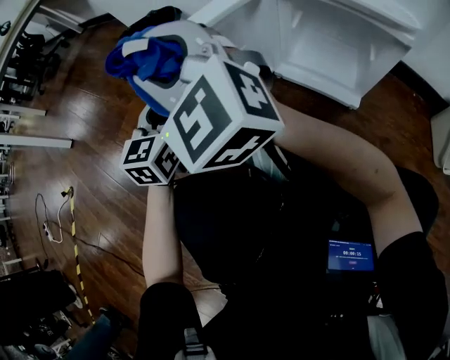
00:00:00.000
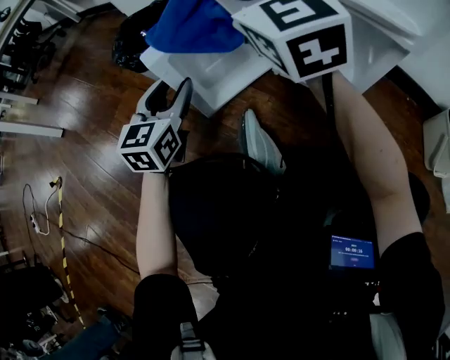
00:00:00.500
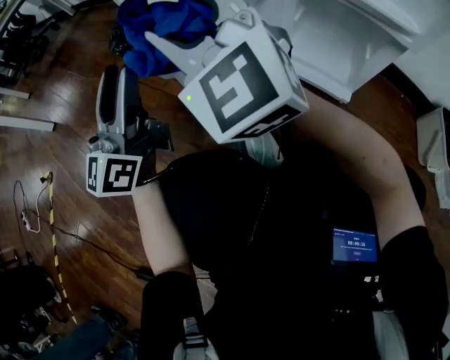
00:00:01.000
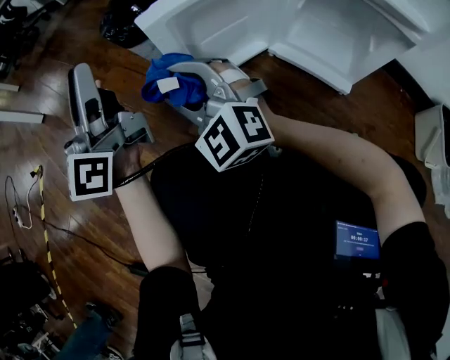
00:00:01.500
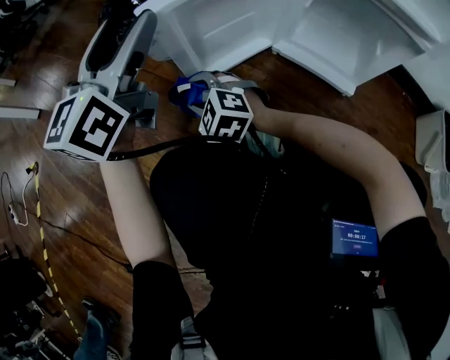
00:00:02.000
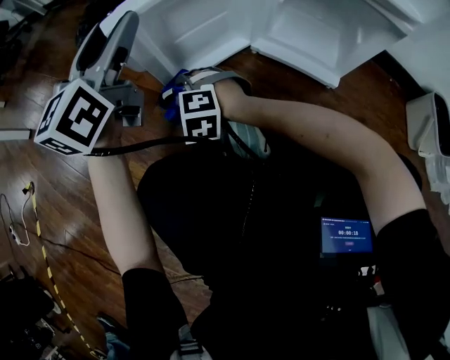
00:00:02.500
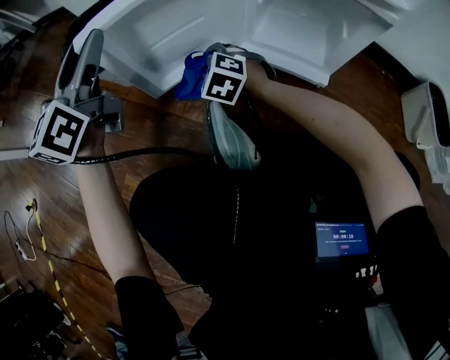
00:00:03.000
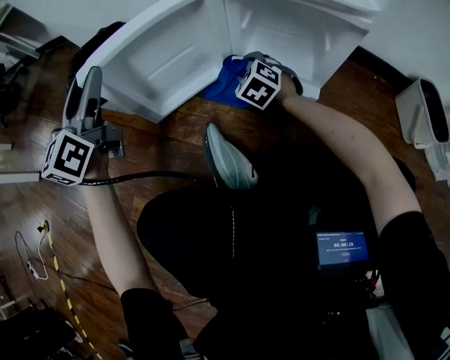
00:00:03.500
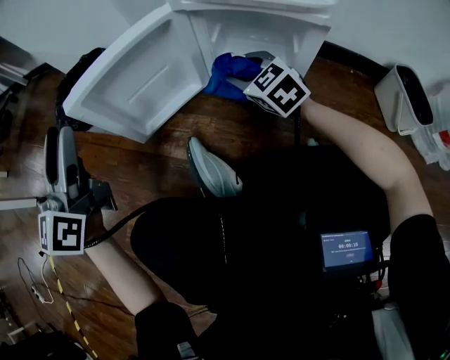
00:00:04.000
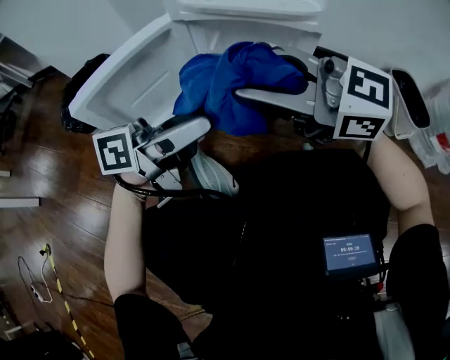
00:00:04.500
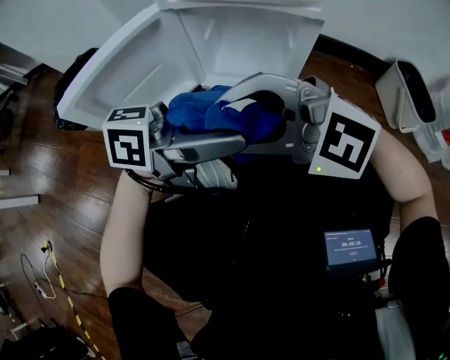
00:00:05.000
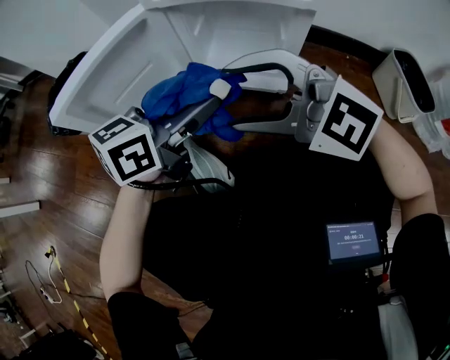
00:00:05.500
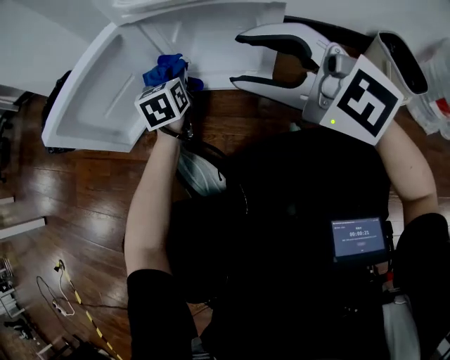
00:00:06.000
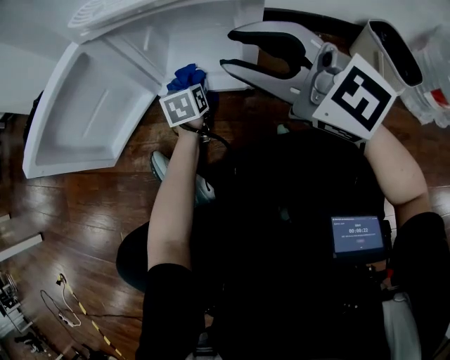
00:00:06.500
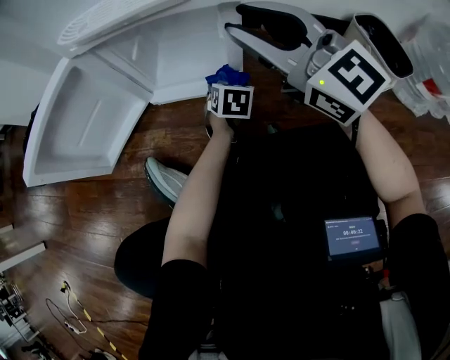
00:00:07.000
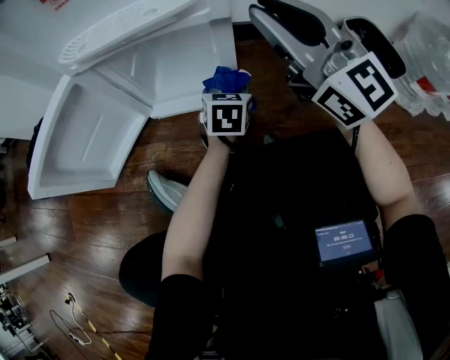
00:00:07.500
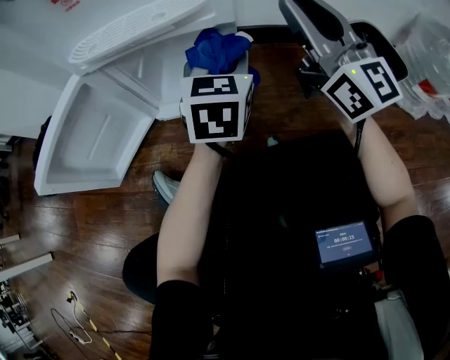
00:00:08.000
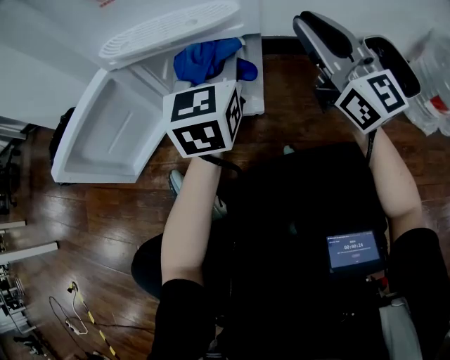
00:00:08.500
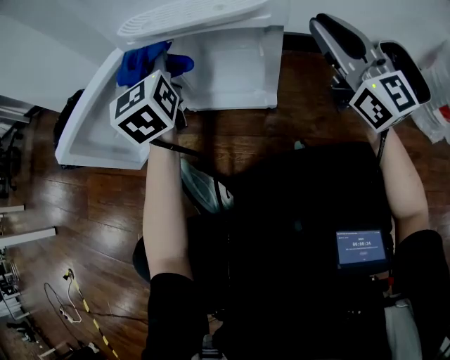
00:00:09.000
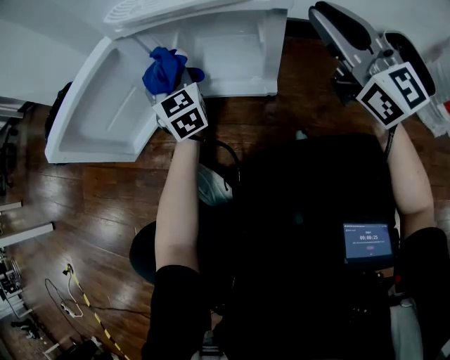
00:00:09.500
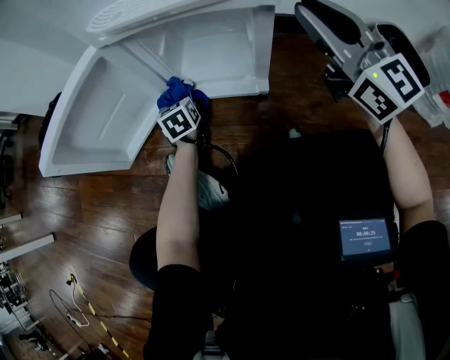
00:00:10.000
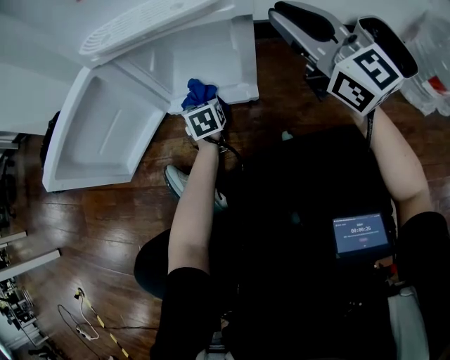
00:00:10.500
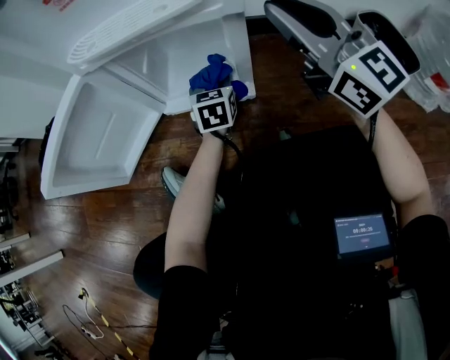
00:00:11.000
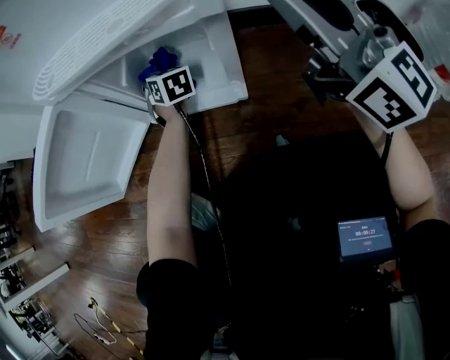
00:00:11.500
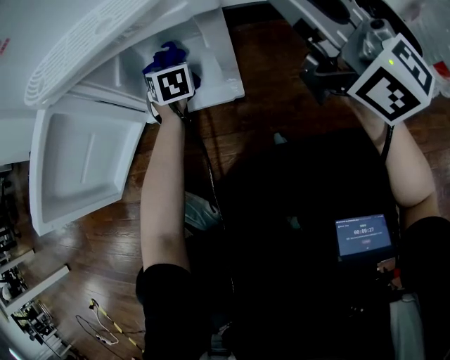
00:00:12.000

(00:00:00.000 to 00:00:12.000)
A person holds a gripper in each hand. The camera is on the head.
00:00:00.000 - 00:00:02.000: The right gripper goes about 30 cm downward, and tilts its fingers roughly 40 degrees downward. Meanwhile the left gripper moves upward, roughly 10 cm, and turns by roughly 20 degrees.
00:00:02.000 - 00:00:04.000: The left gripper goes forward and returns, some 5 cm each way. The right gripper goes approximately 30 cm to the right, and turns by some 40 degrees.
00:00:04.000 - 00:00:06.000: The right gripper is displaced upward by about 15 cm, and turns by roughly 30 degrees. The left gripper moves some 40 cm, and tips its fingers downward by roughly 40 degrees.
00:00:06.000 - 00:00:08.000: The right gripper shifts by approximately 20 cm, changes its angle by roughly 50 degrees, and closes, while the left gripper moves about 25 cm, and turns by some 30 degrees.
00:00:08.000 - 00:00:10.000: The right gripper ends up roughly 5 cm from where it was; the left gripper shifts some 35 cm to the left and downward, and turns by some 40 degrees.
00:00:10.000 - 00:00:12.000: The left gripper moves to the right and forward, about 15 cm, and swivels some 30 degrees.

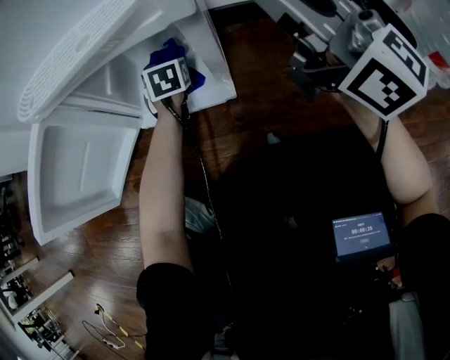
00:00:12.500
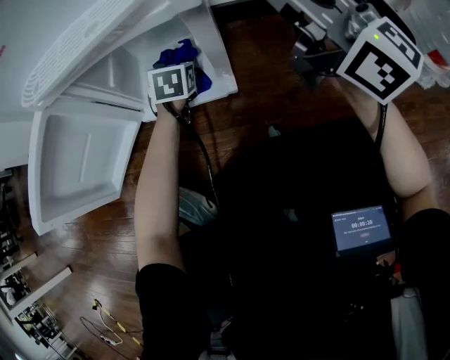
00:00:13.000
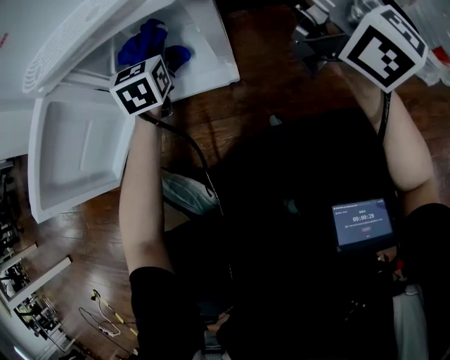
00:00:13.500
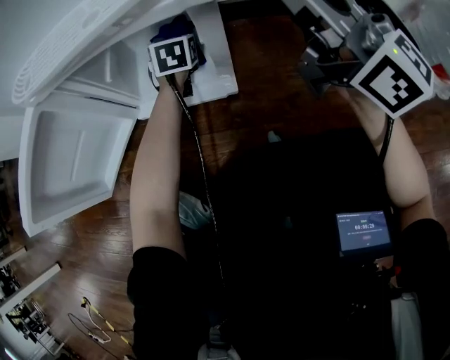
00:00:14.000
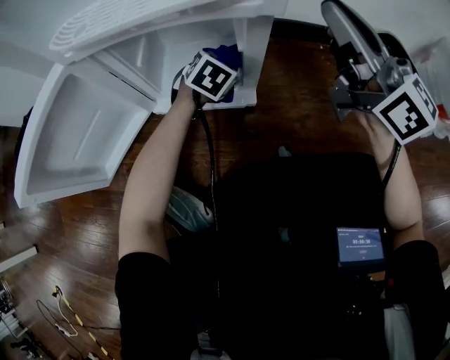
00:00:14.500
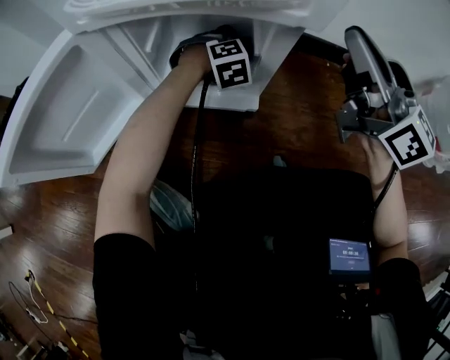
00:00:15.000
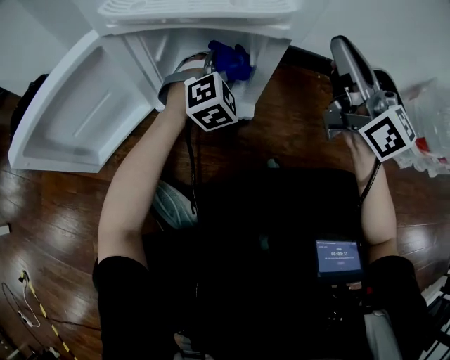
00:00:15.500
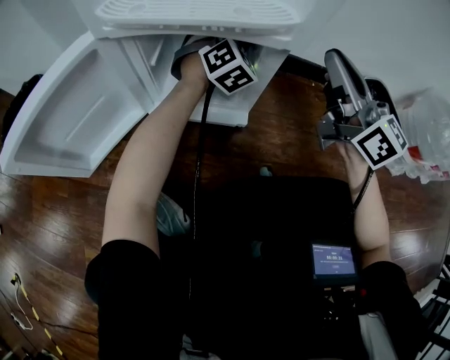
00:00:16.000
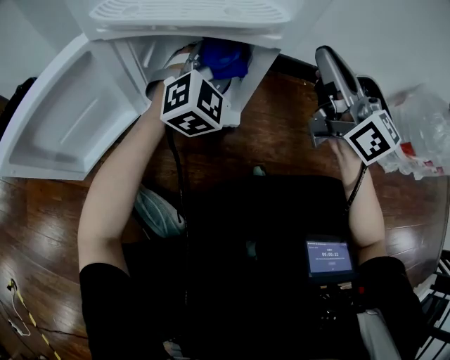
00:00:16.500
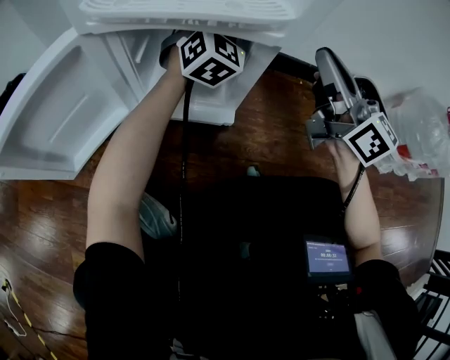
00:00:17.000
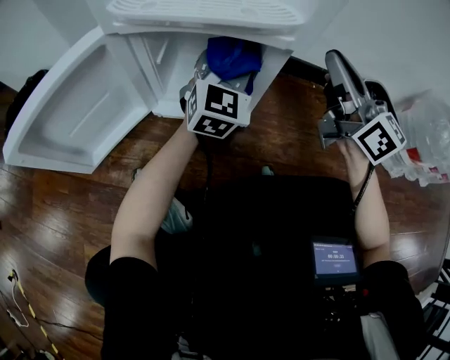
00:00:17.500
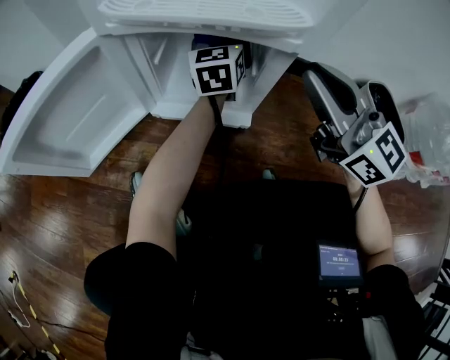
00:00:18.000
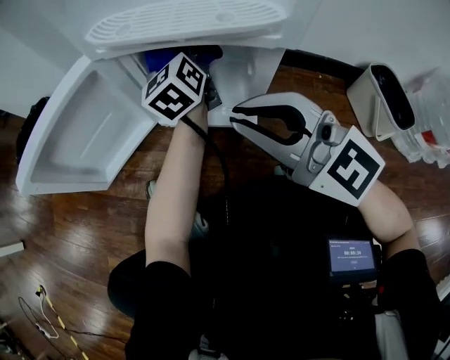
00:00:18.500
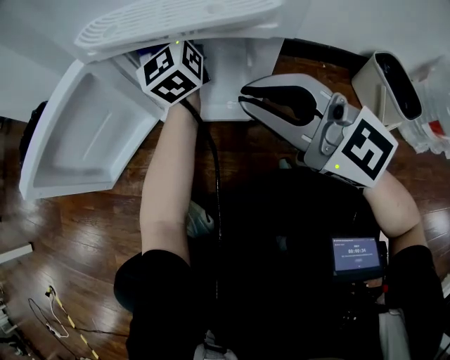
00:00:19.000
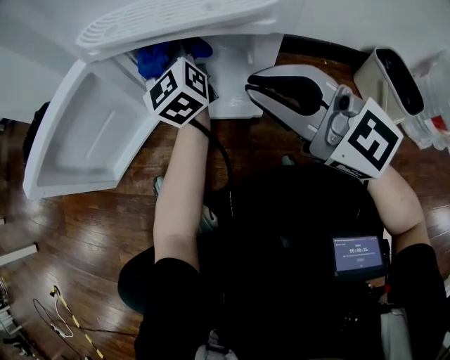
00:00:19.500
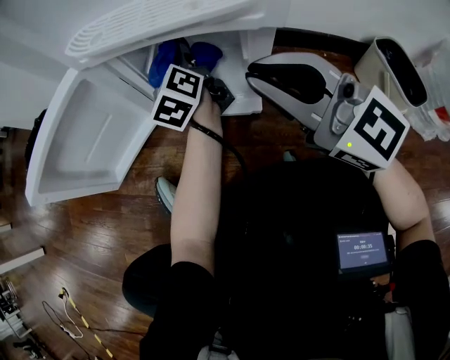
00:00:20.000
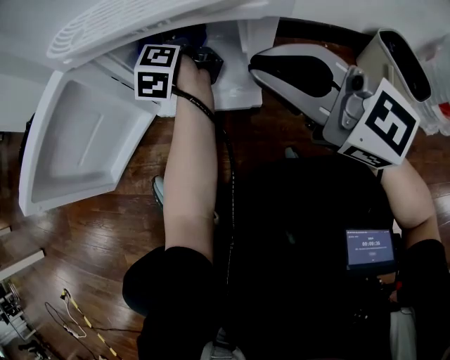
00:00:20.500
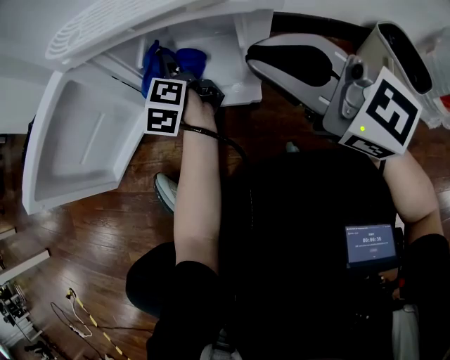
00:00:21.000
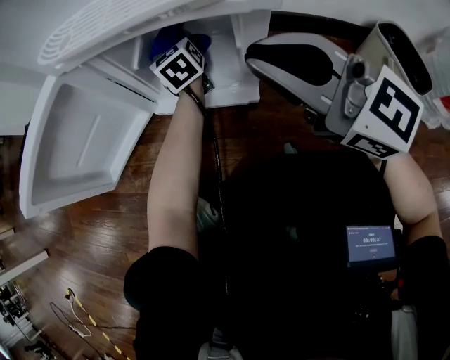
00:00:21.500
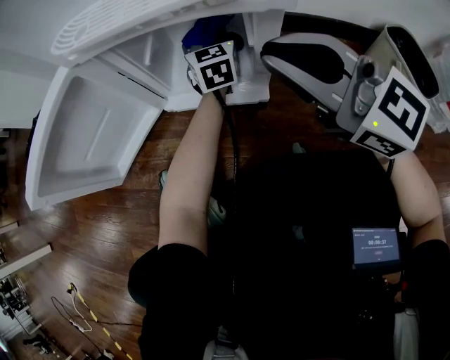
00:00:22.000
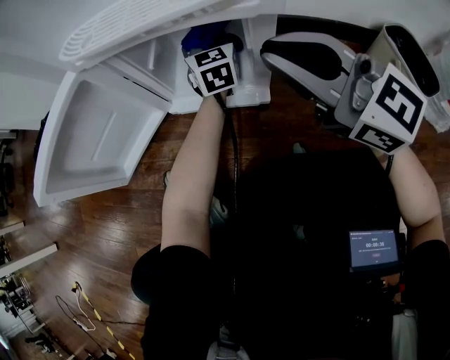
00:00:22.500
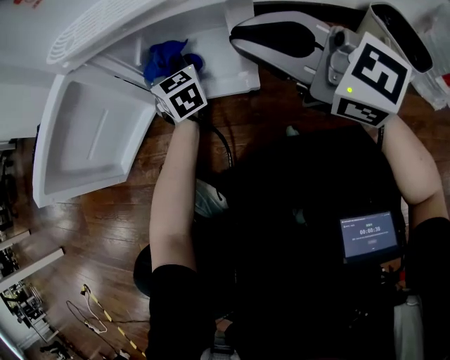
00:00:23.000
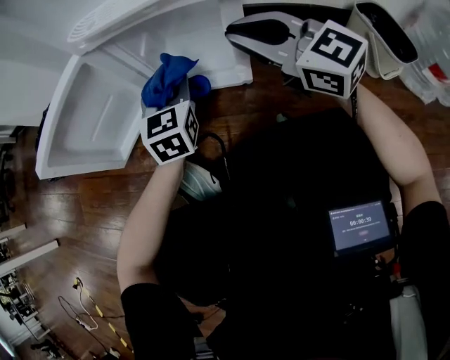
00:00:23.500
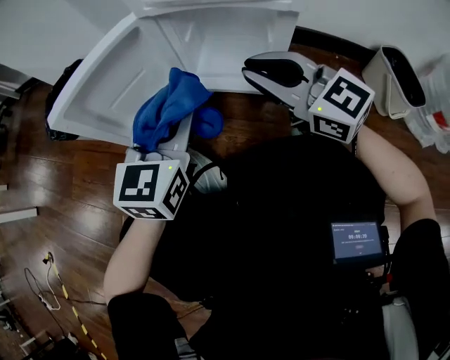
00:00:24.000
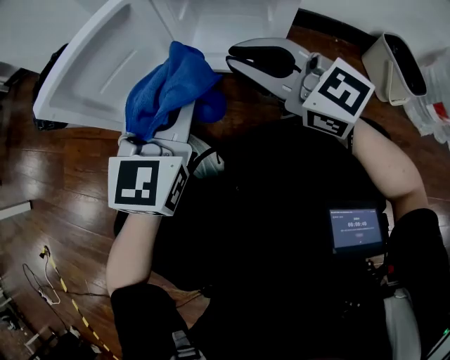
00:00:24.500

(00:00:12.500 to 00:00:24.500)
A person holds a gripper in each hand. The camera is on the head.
00:00:12.500 - 00:00:14.500: The left gripper moves to the right and backward, about 10 cm, goes upward and returns, roughly 10 cm each way, and turns by approximately 30 degrees.
00:00:14.500 - 00:00:16.500: The left gripper travels upward by about 15 cm, and rotates about 40 degrees.
00:00:16.500 - 00:00:18.500: The left gripper changes place by roughly 15 cm, and rotates around the line of its fingers by about 70 degrees, counterclockwise from behind; the right gripper moves about 20 cm, and swivels some 40 degrees.
00:00:18.500 - 00:00:20.500: The left gripper goes some 5 cm downward, and turns by roughly 30 degrees; the right gripper goes about 5 cm to the right.
00:00:20.500 - 00:00:22.500: The left gripper goes roughly 10 cm to the right and backward, and twists about 60 degrees clockwise, seen from behind.
00:00:22.500 - 00:00:24.500: The left gripper shifts roughly 35 cm backward, to the left and upward, while the right gripper goes roughly 10 cm to the left.

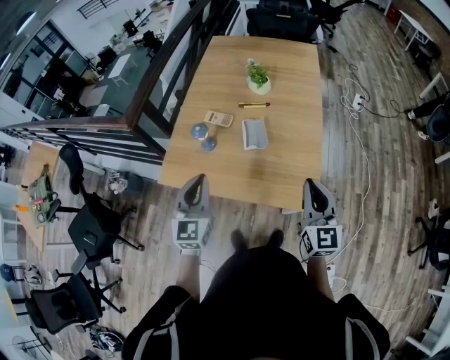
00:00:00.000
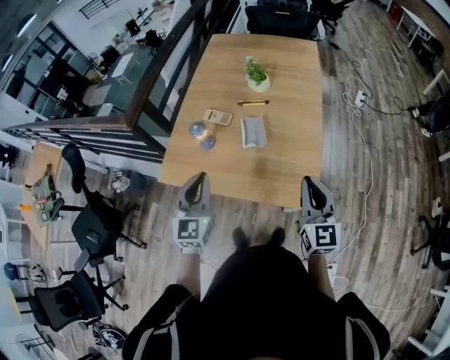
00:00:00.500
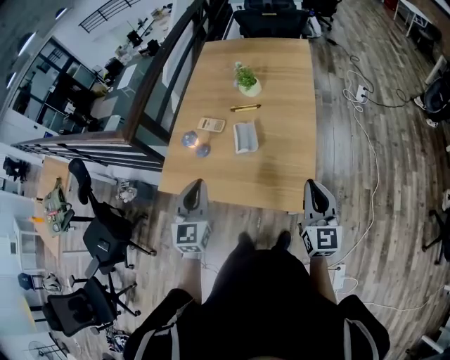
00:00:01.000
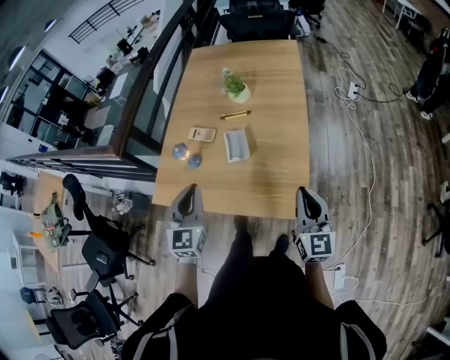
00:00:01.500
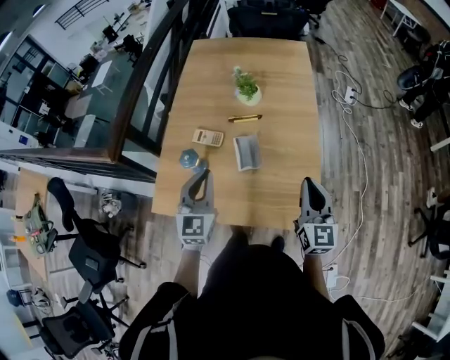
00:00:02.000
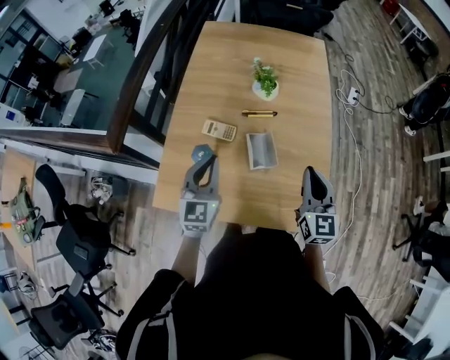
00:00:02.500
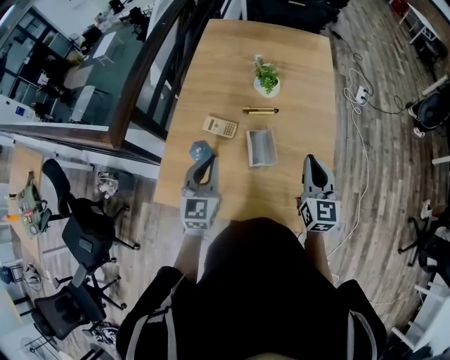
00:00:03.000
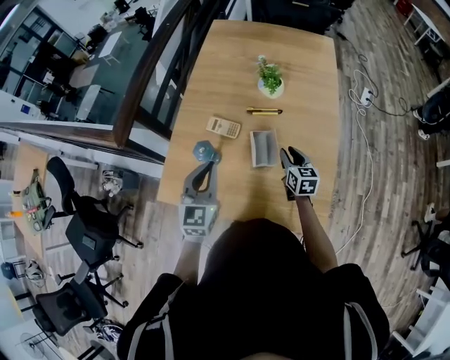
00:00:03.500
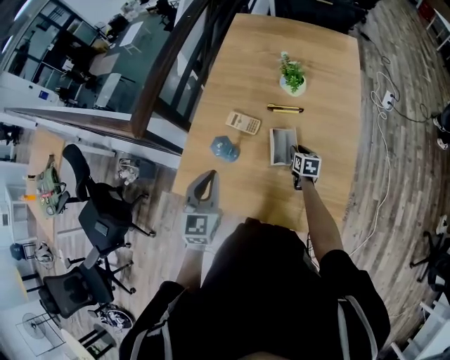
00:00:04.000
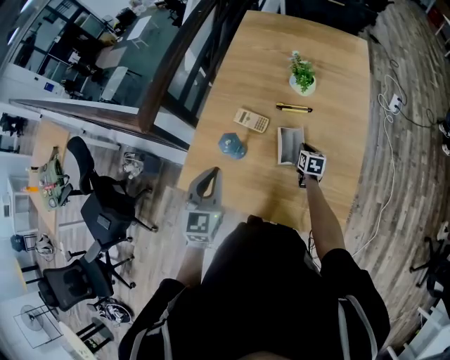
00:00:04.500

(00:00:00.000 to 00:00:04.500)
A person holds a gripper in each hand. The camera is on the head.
00:00:00.000 - 00:00:02.000: The grippers both shift forward by roughly 15 cm.
00:00:02.000 - 00:00:04.500: The right gripper travels downward and forward by about 40 cm, tilts its fingers approximately 40 degrees downward, and opens, then closes once more, while the left gripper shifts about 10 cm to the left.
